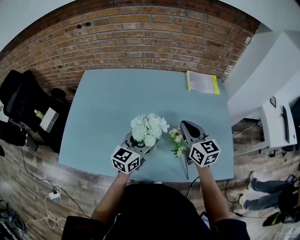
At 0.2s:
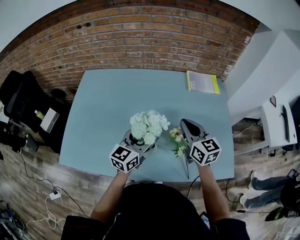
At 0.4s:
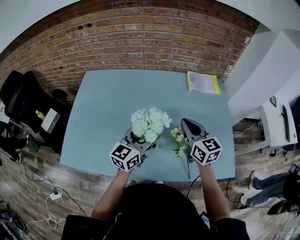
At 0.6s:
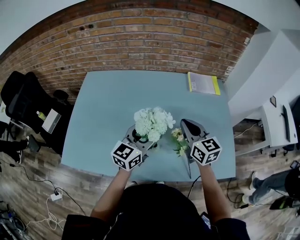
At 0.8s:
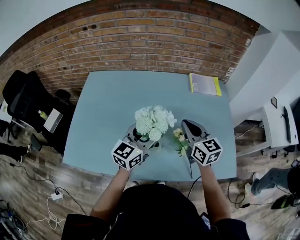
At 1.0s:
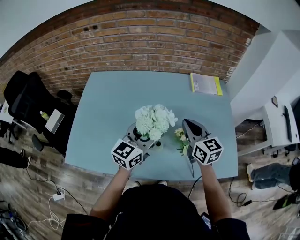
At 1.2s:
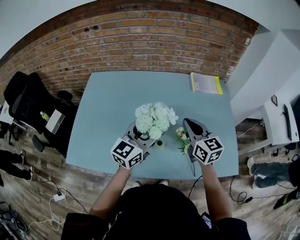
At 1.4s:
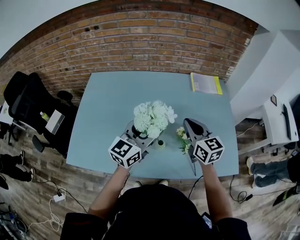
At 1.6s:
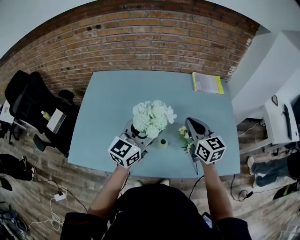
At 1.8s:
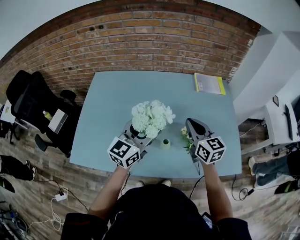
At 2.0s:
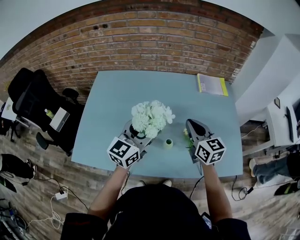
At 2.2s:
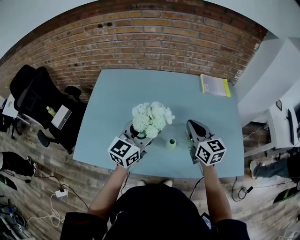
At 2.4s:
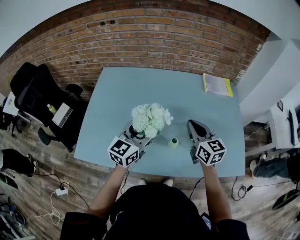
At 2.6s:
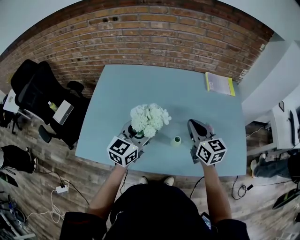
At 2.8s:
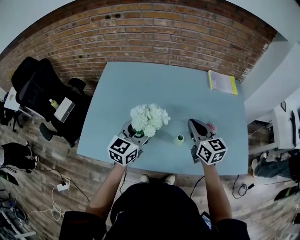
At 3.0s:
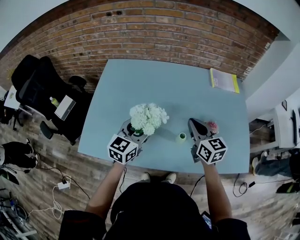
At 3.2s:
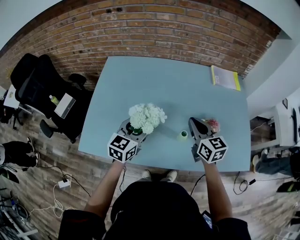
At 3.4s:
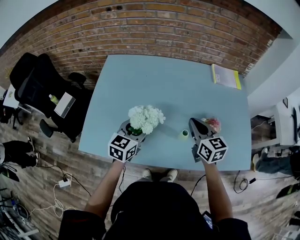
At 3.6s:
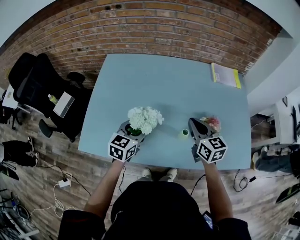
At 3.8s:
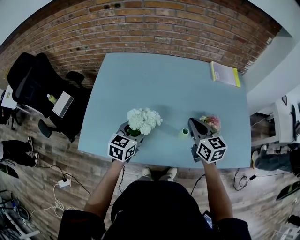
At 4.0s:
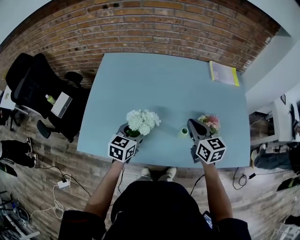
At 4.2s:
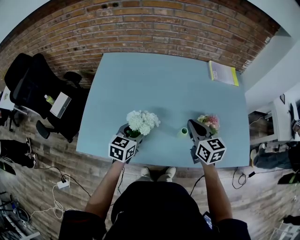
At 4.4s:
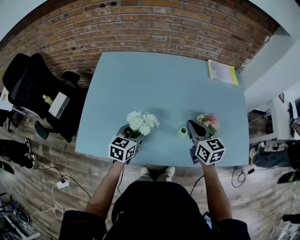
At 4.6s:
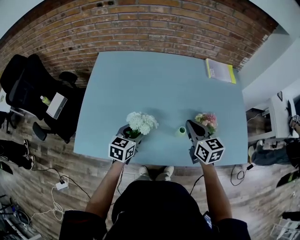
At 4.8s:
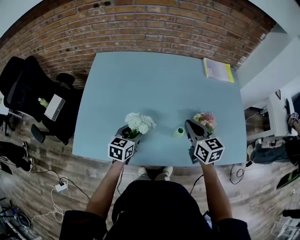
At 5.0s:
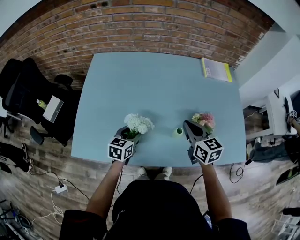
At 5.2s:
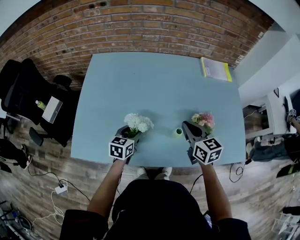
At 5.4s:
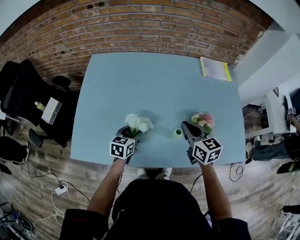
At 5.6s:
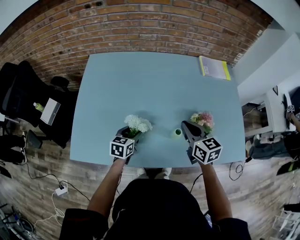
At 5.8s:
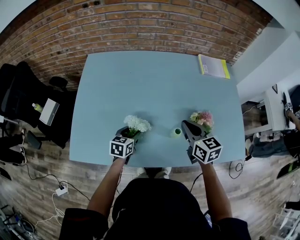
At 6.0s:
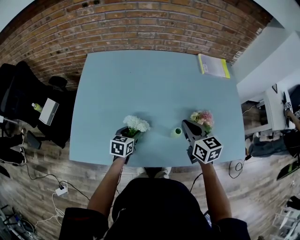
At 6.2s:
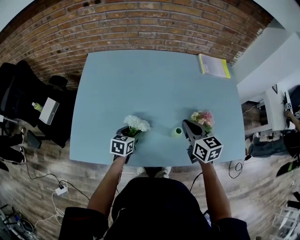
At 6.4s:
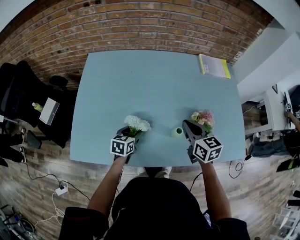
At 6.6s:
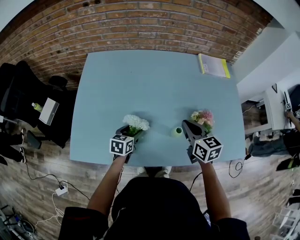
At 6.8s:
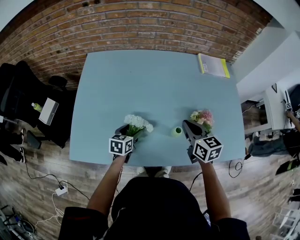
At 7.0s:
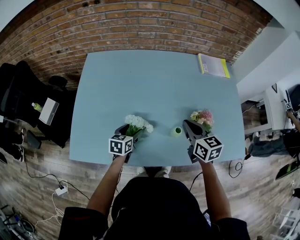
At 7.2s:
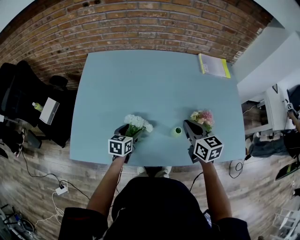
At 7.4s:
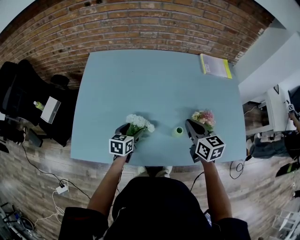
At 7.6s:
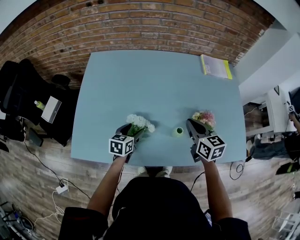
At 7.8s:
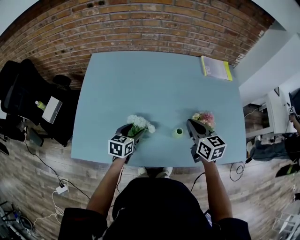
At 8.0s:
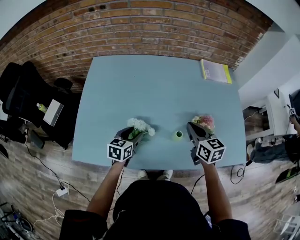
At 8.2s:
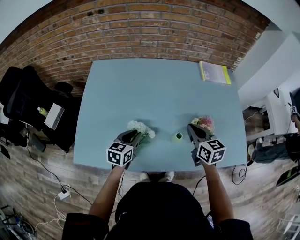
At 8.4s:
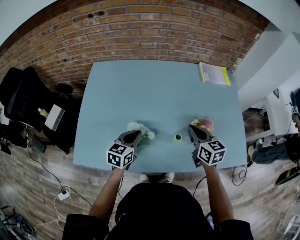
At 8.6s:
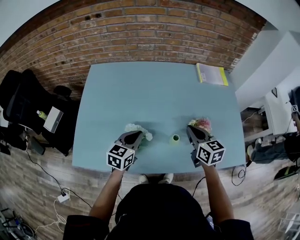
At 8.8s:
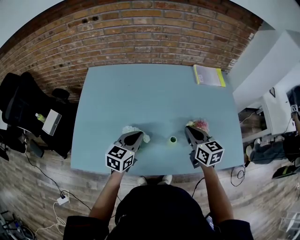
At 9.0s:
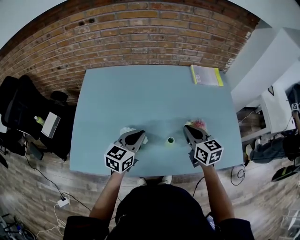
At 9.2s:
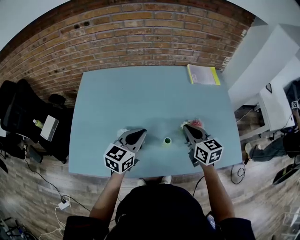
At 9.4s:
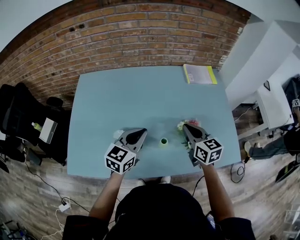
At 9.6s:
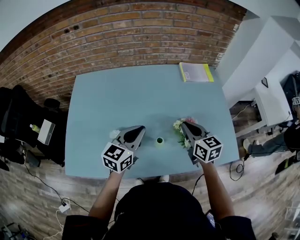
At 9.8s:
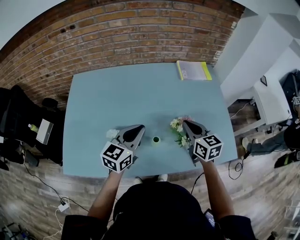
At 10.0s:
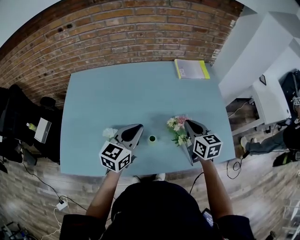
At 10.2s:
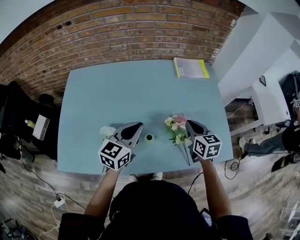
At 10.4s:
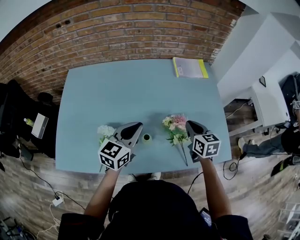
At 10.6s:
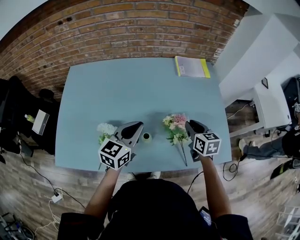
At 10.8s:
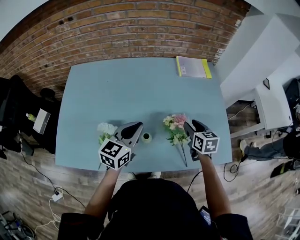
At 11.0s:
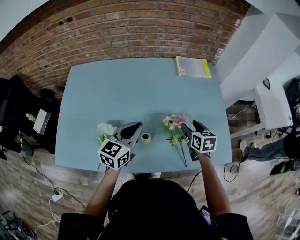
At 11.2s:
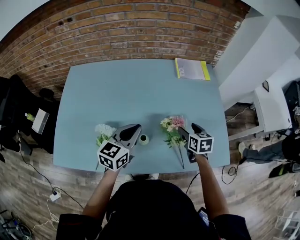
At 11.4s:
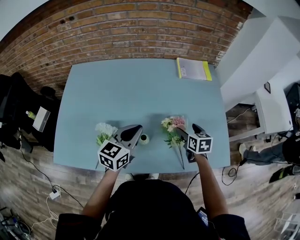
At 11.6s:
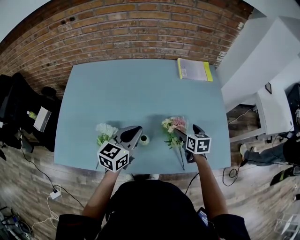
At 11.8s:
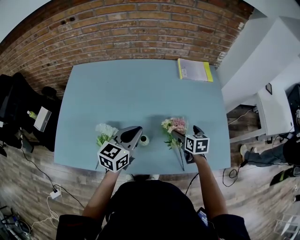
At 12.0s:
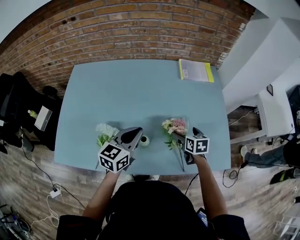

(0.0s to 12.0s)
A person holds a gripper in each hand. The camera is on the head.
0.0s - 1.6s: The right gripper shifts by about 5 cm, while the left gripper heads upward, covering some 10 cm.
1.6s - 3.0s: The right gripper goes roughly 10 cm to the left. The left gripper shifts some 15 cm to the left and downward.
3.0s - 4.4s: The left gripper is displaced downward by about 10 cm.
4.4s - 6.0s: The left gripper shifts some 10 cm downward.
6.0s - 7.6s: The grippers move only a little.
7.6s - 9.0s: The left gripper shifts some 15 cm upward and to the right, rotates some 20 degrees, and closes its fingers.
9.0s - 10.4s: Both grippers move to the right, approximately 15 cm.
10.4s - 12.0s: The right gripper goes some 10 cm downward, and opens.

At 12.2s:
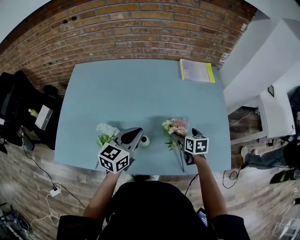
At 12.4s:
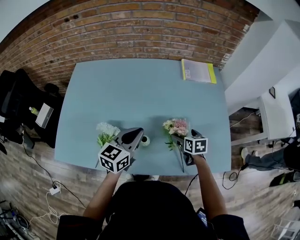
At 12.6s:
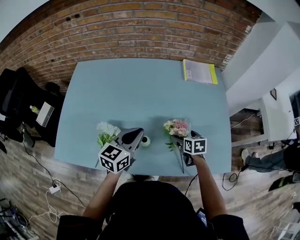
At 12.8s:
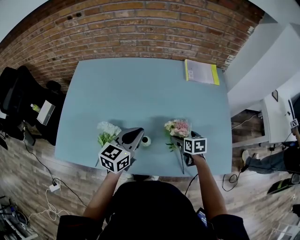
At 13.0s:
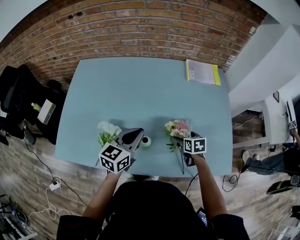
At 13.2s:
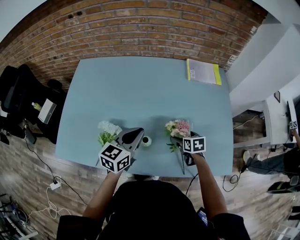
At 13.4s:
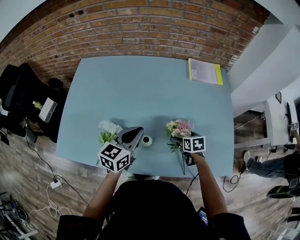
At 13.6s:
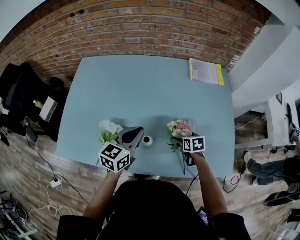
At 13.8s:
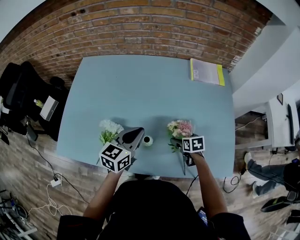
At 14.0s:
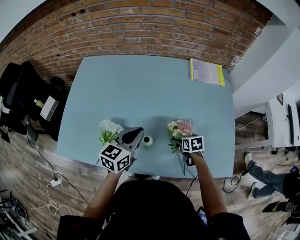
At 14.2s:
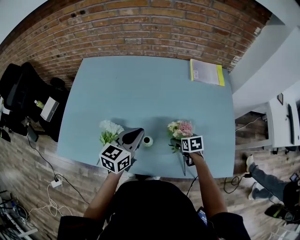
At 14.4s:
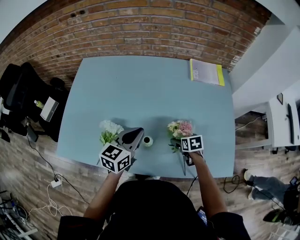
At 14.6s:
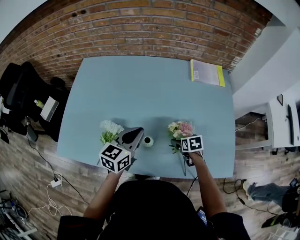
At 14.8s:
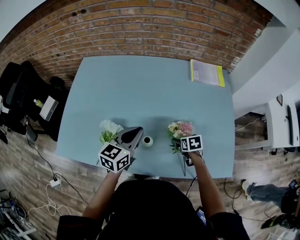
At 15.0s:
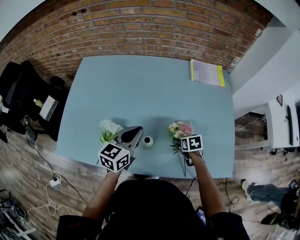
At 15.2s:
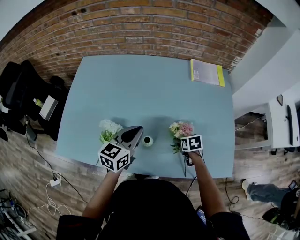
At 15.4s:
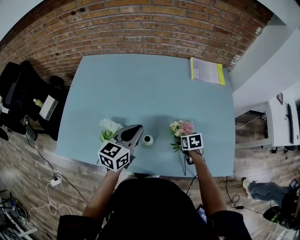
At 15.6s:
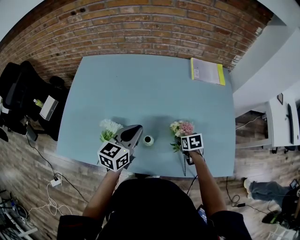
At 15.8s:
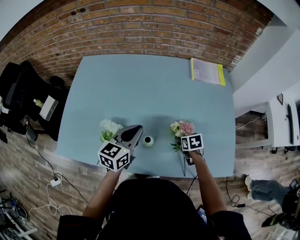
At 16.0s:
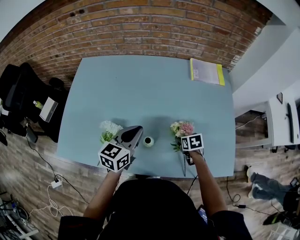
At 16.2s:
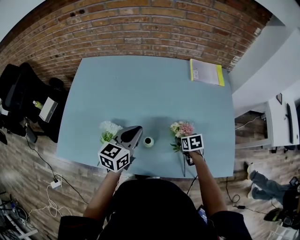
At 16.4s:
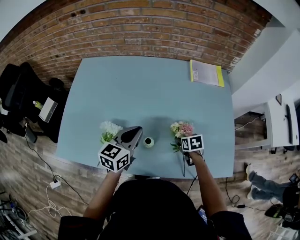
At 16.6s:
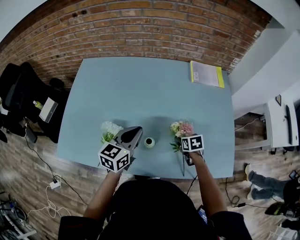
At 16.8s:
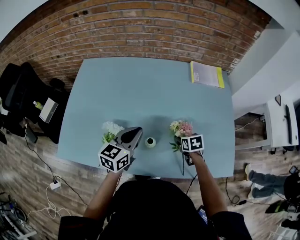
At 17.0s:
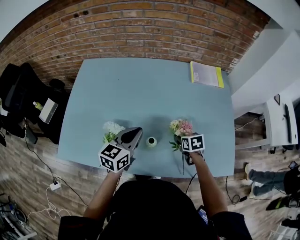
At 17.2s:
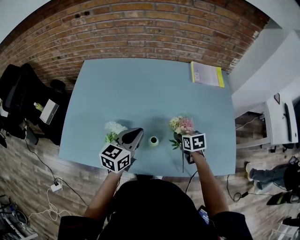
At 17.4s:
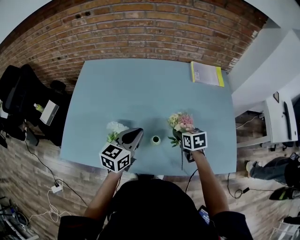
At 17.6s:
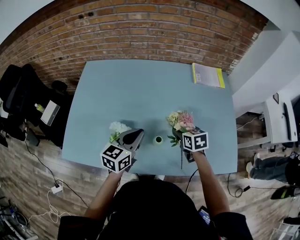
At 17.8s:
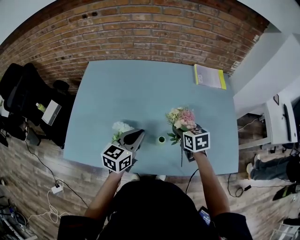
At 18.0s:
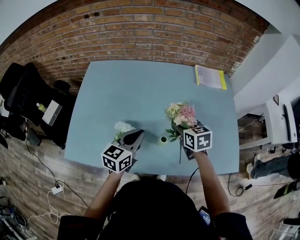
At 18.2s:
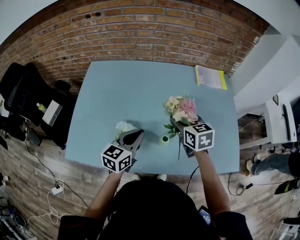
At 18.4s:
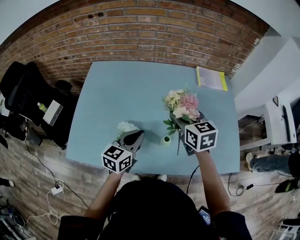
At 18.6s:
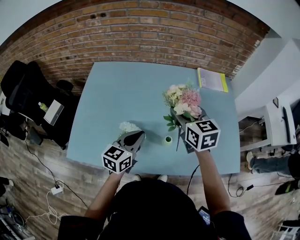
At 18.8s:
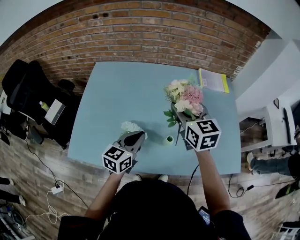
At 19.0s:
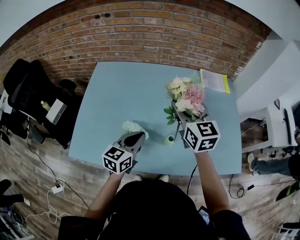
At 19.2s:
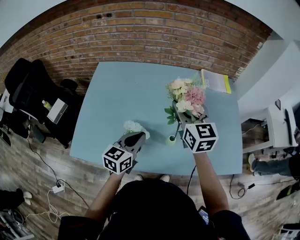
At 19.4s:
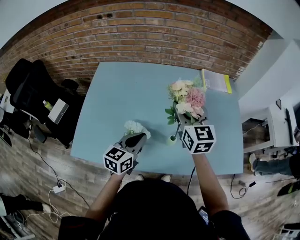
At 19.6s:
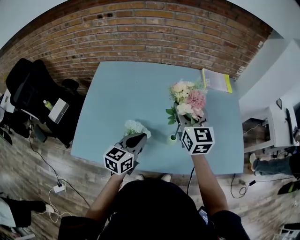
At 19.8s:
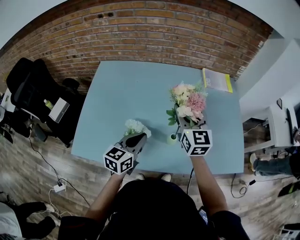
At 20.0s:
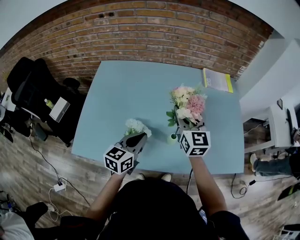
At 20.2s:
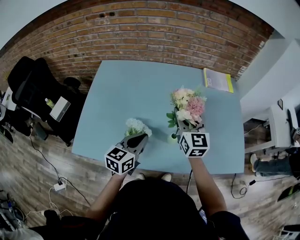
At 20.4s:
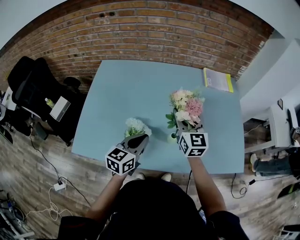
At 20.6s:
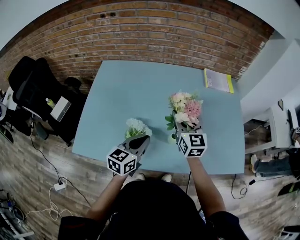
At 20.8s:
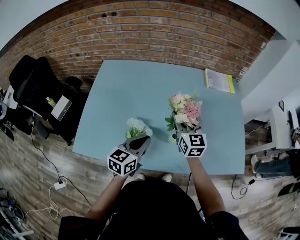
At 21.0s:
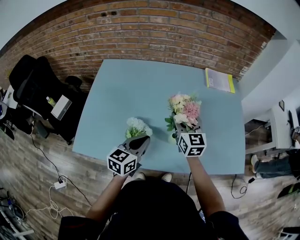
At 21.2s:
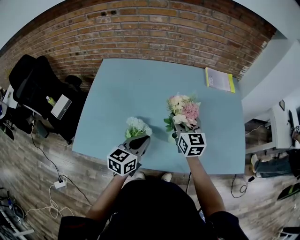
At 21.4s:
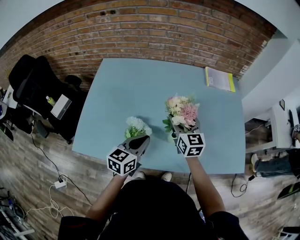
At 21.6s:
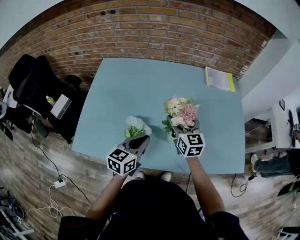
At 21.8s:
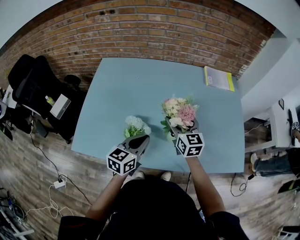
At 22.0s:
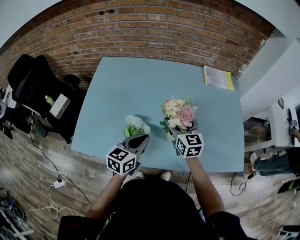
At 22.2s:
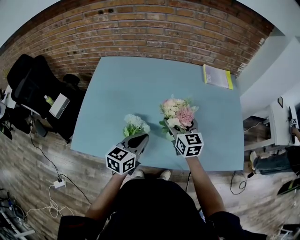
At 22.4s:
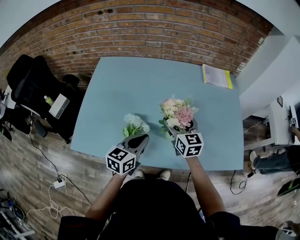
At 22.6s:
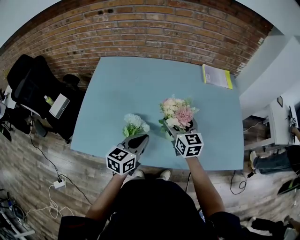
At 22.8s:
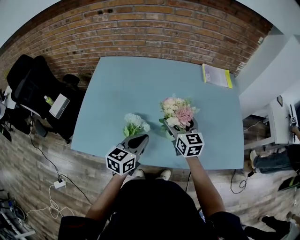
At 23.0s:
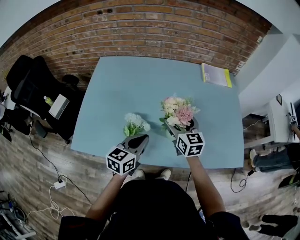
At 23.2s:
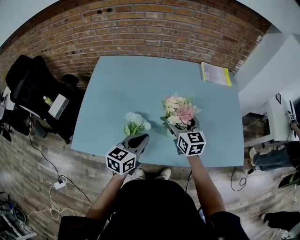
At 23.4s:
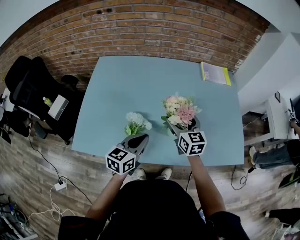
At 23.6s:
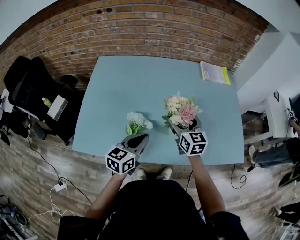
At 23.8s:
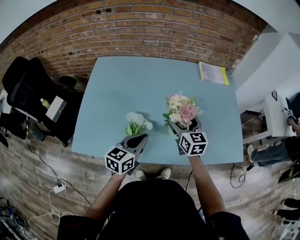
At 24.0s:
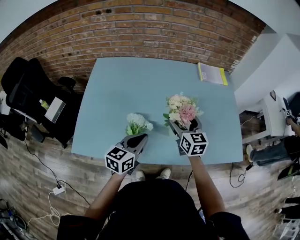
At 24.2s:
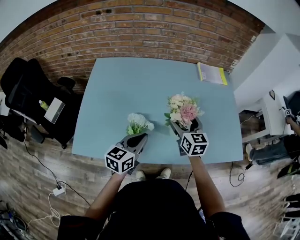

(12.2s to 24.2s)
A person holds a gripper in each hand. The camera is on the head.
12.2s - 13.8s: The right gripper travels downward by about 5 cm.
13.8s - 16.6s: The grippers move only a little.
16.6s - 18.2s: The right gripper heads upward and to the left, covering about 25 cm, and swivels some 30 degrees. Meanwhile the left gripper moves to the left, roughly 5 cm.
18.2s - 19.8s: The right gripper moves upward, some 10 cm, and rotates about 30 degrees.
19.8s - 21.2s: The right gripper travels downward by about 10 cm.
21.2s - 24.2s: The grippers make only small movements.
